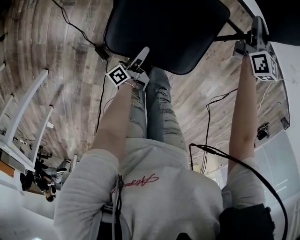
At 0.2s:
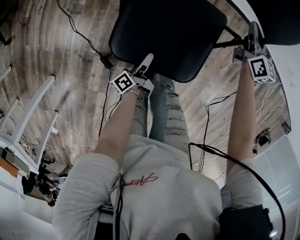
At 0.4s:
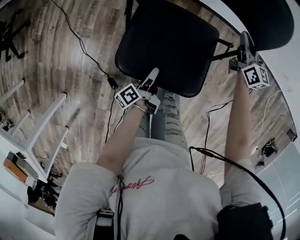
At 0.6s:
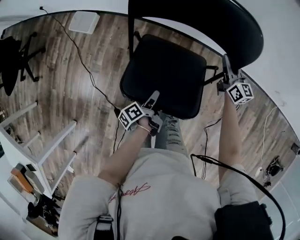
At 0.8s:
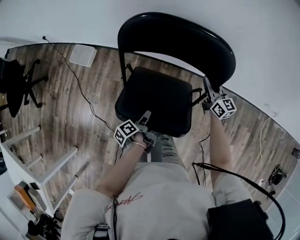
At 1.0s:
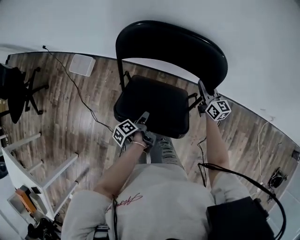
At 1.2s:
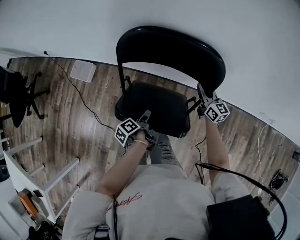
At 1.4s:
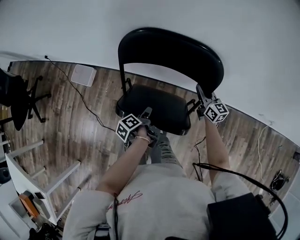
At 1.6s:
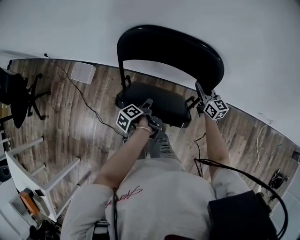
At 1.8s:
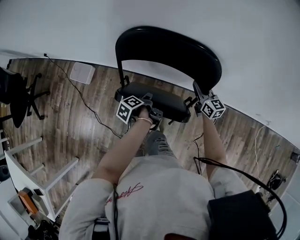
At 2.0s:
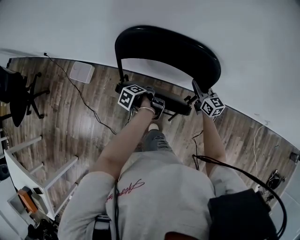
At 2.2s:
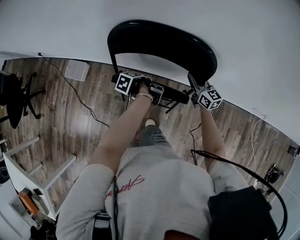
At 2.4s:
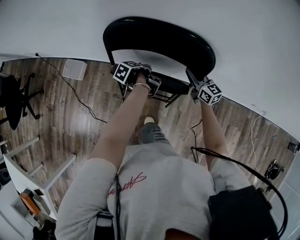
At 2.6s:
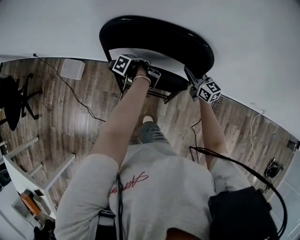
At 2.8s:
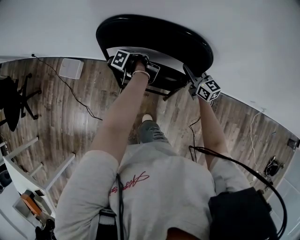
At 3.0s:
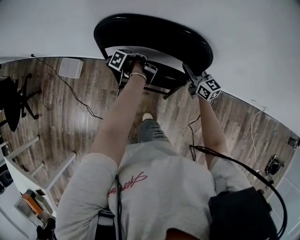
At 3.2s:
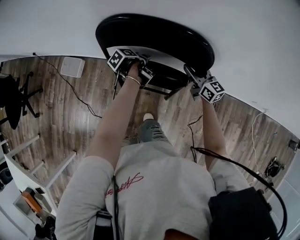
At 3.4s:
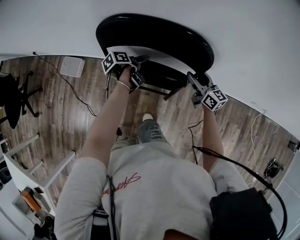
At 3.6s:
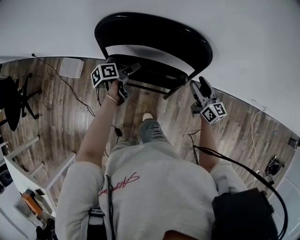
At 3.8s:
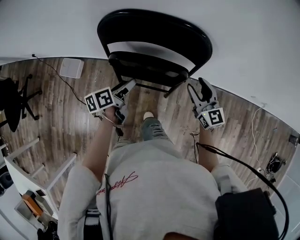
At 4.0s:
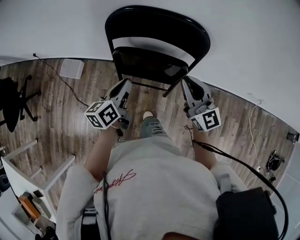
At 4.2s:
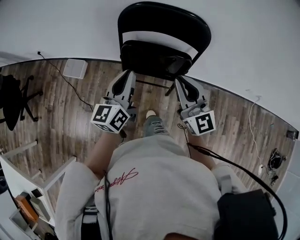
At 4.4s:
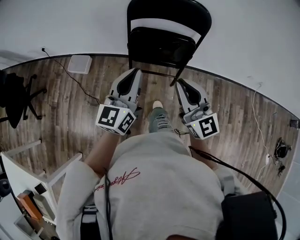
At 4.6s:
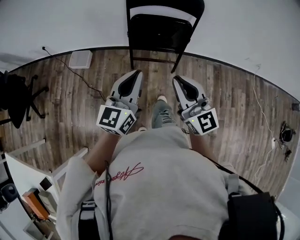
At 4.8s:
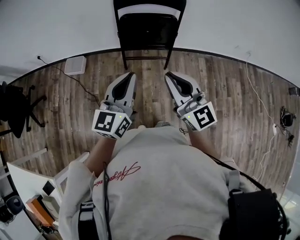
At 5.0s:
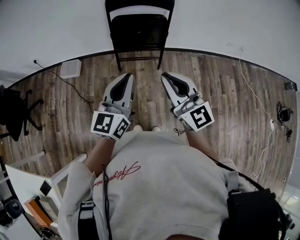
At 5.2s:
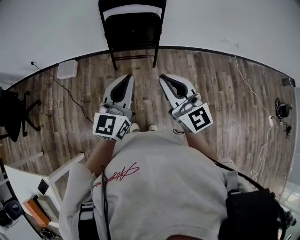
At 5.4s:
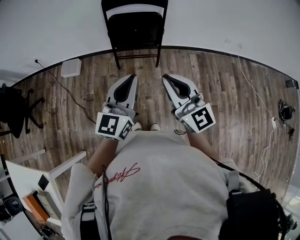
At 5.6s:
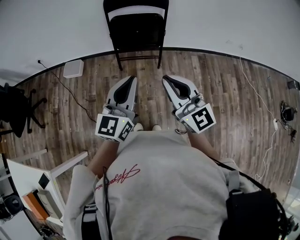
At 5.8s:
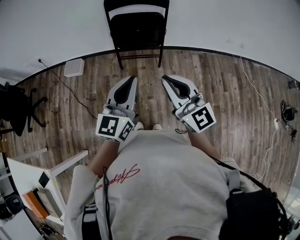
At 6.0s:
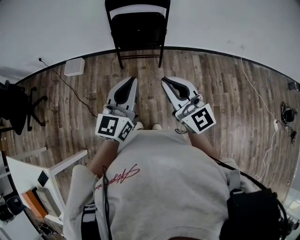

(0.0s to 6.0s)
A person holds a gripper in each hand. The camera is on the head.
0.0s - 1.6s: The left gripper goes approximately 40 cm forward and upward, points its fingers about 30 degrees further downward, and closes its fingers. Meanwhile the right gripper shifts approximately 20 cm forward and upward.
1.6s - 3.0s: The left gripper shifts roughly 15 cm forward.
3.0s - 4.4s: The left gripper travels upward and backward by about 40 cm, tips its fingers upward by some 60 degrees, and closes up. The right gripper moves backward, upward and to the left, some 50 cm, swivels approximately 30 degrees, and opens and closes again.
4.4s - 6.0s: Both grippers move backward, some 25 cm.

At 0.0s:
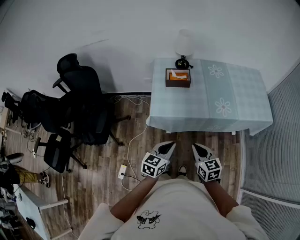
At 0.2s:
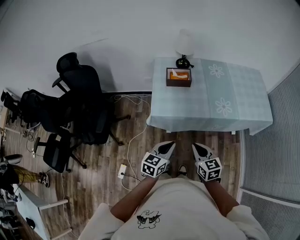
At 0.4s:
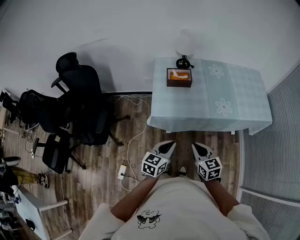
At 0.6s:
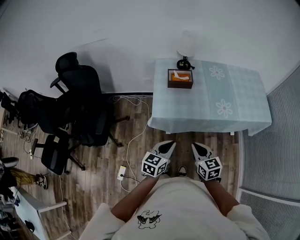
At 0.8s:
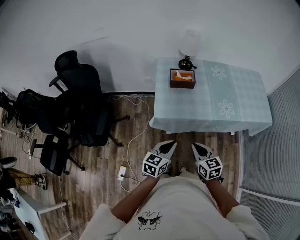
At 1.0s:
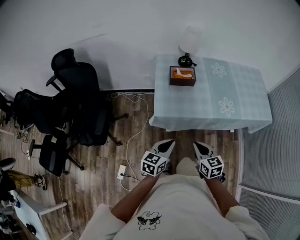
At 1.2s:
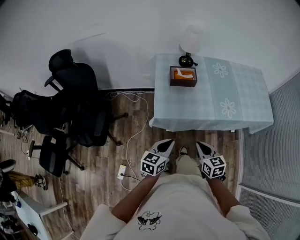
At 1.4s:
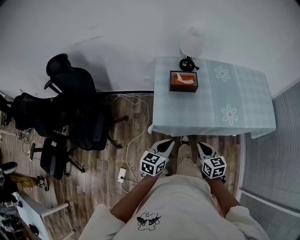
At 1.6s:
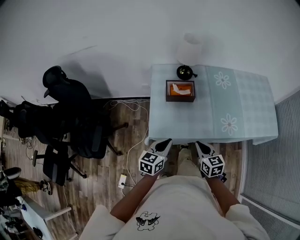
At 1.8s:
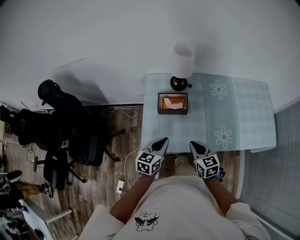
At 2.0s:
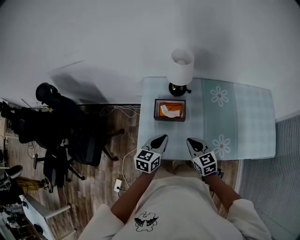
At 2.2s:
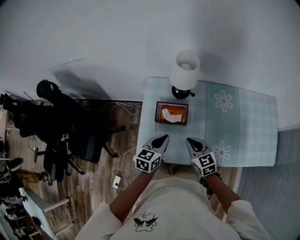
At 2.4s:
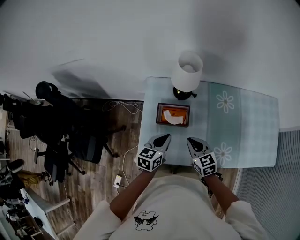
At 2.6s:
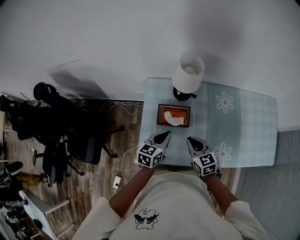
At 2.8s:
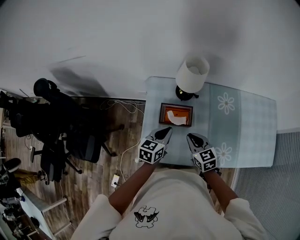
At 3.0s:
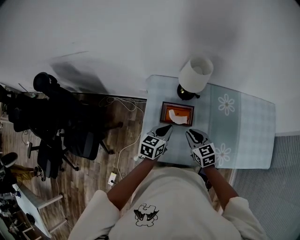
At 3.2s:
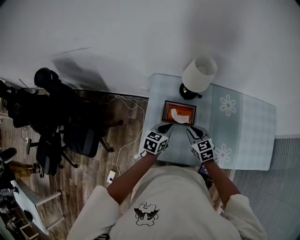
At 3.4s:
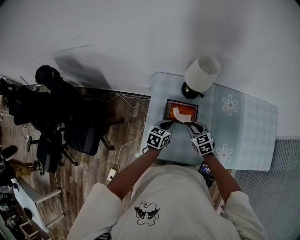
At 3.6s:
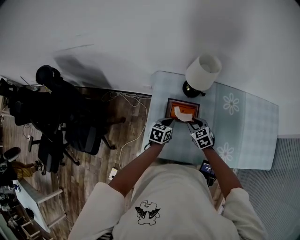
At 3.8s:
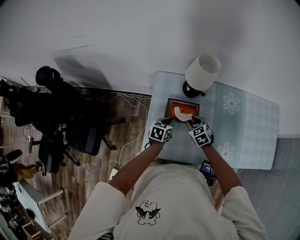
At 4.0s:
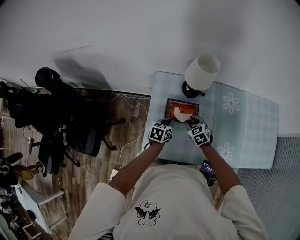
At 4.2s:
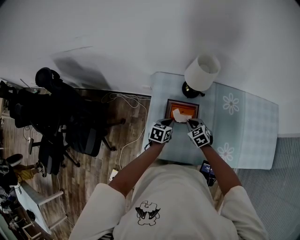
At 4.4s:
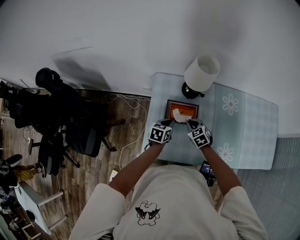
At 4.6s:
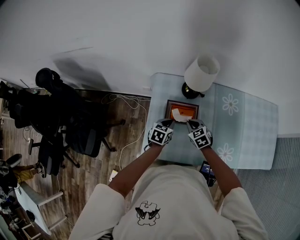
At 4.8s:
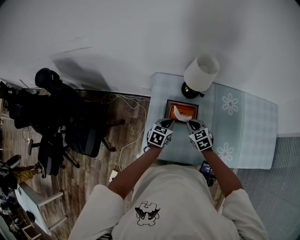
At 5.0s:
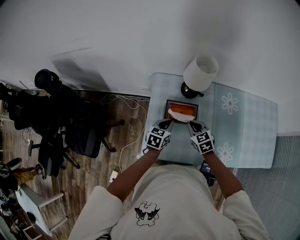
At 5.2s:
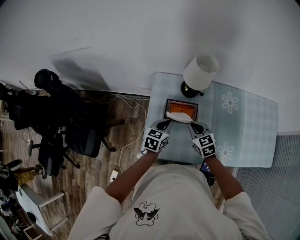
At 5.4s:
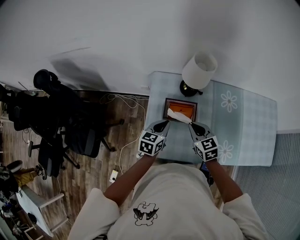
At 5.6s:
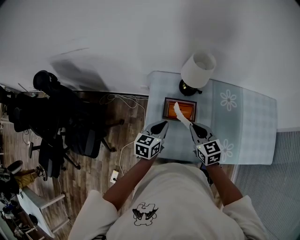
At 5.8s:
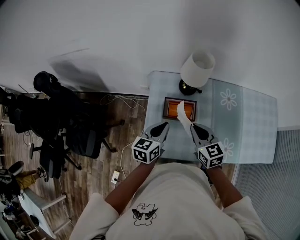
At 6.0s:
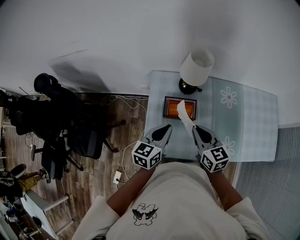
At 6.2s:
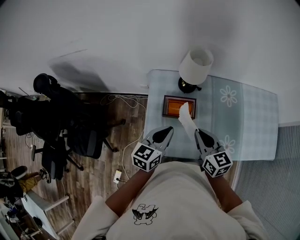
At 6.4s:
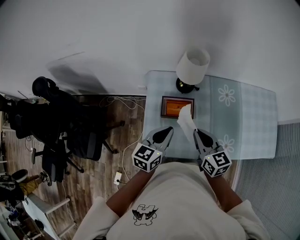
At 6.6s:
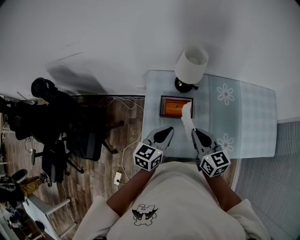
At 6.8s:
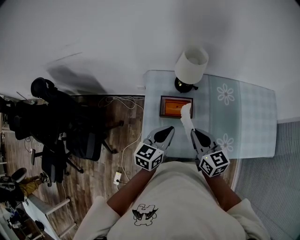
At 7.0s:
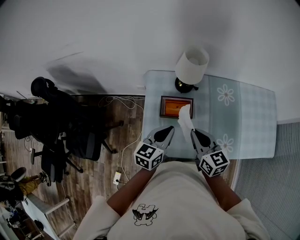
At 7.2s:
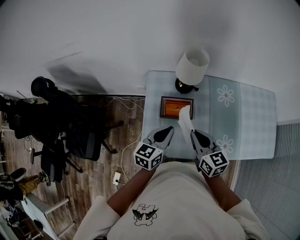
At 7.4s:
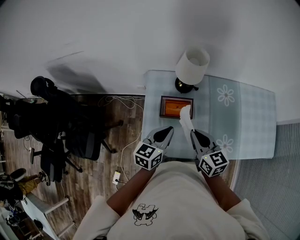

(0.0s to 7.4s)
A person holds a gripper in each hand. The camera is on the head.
0.0s - 1.4s: The left gripper heads forward and to the left, covering roughly 10 cm, while the right gripper moves forward and downward, roughly 10 cm.
1.4s - 3.0s: Both grippers travel together forward, approximately 35 cm.
3.0s - 4.4s: The left gripper heads downward, covering approximately 10 cm. Meanwhile the right gripper goes approximately 10 cm downward and forward, and swivels approximately 20 degrees.
4.4s - 6.0s: The two grippers go approximately 20 cm upward. The right gripper rotates about 40 degrees. The left gripper swivels about 20 degrees.
6.0s - 7.4s: The grippers make only small movements.

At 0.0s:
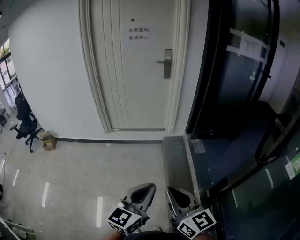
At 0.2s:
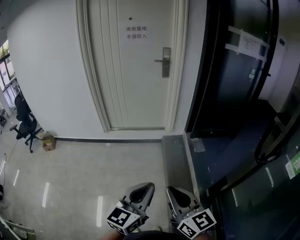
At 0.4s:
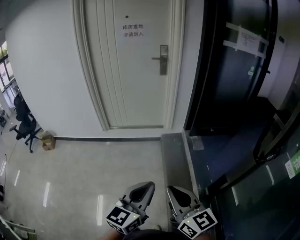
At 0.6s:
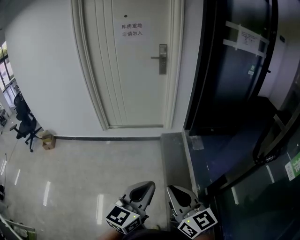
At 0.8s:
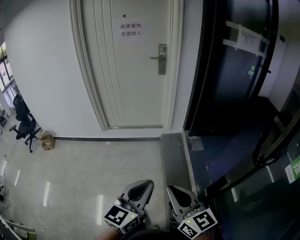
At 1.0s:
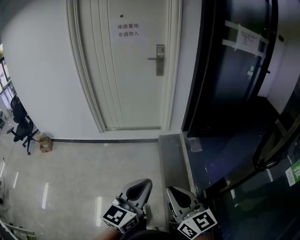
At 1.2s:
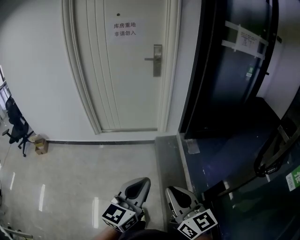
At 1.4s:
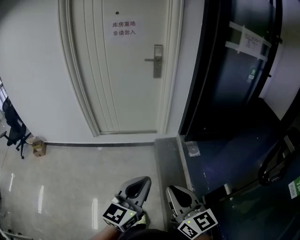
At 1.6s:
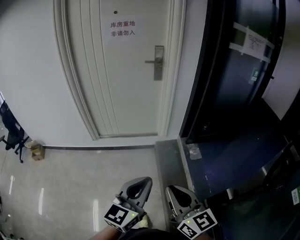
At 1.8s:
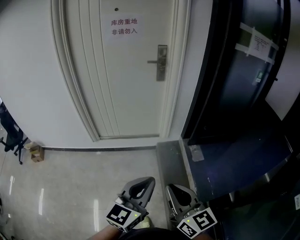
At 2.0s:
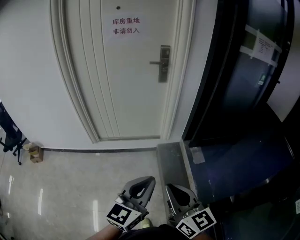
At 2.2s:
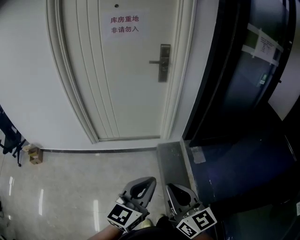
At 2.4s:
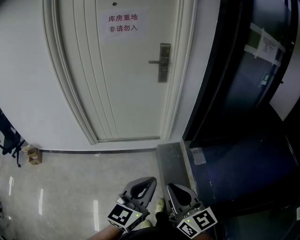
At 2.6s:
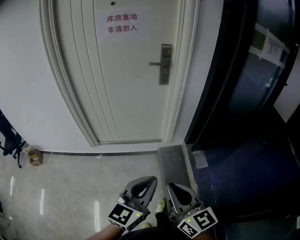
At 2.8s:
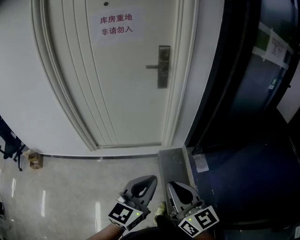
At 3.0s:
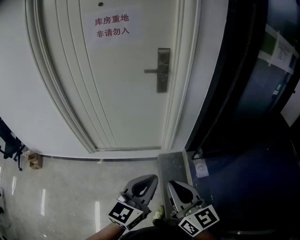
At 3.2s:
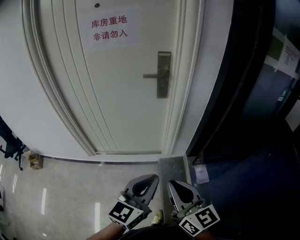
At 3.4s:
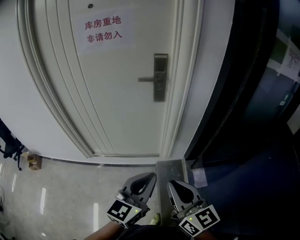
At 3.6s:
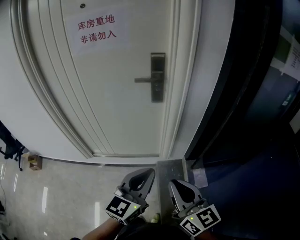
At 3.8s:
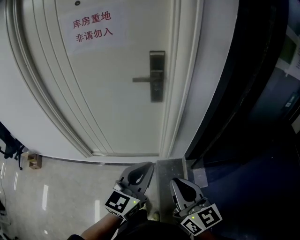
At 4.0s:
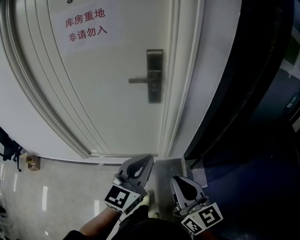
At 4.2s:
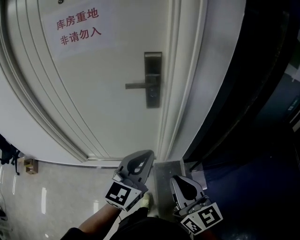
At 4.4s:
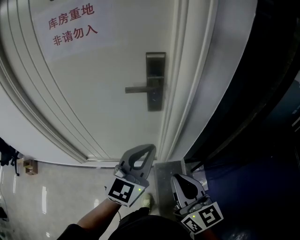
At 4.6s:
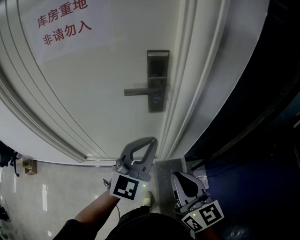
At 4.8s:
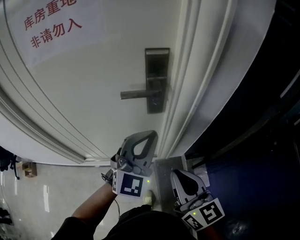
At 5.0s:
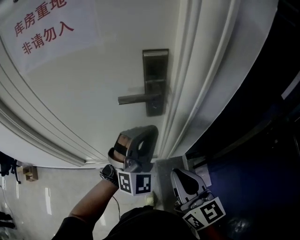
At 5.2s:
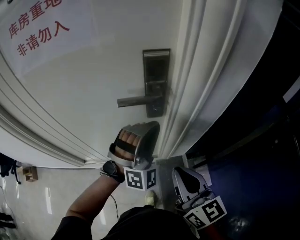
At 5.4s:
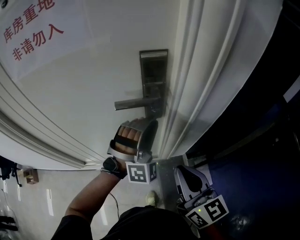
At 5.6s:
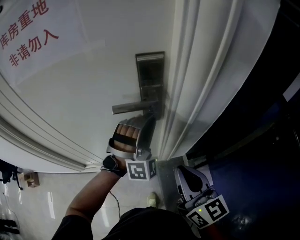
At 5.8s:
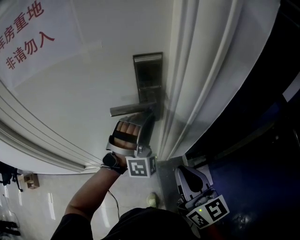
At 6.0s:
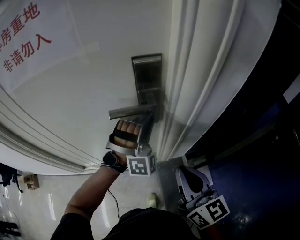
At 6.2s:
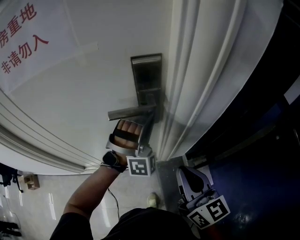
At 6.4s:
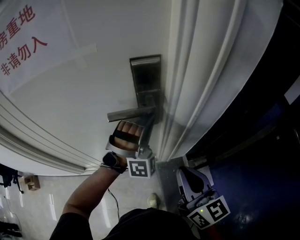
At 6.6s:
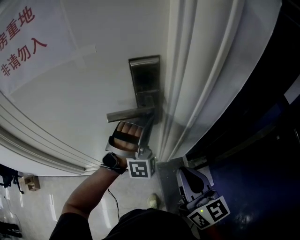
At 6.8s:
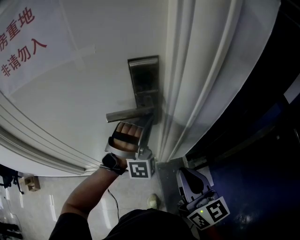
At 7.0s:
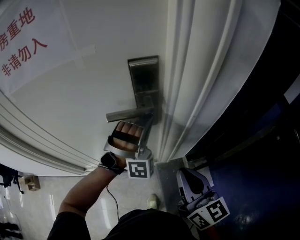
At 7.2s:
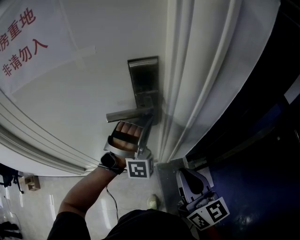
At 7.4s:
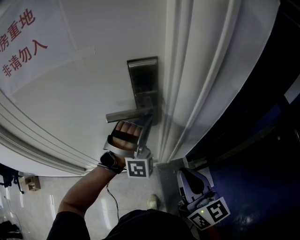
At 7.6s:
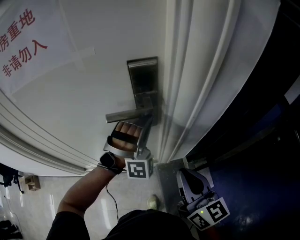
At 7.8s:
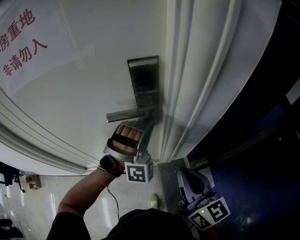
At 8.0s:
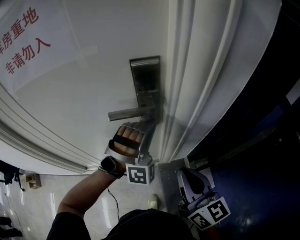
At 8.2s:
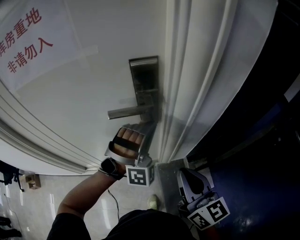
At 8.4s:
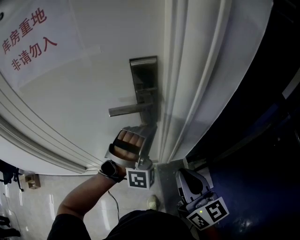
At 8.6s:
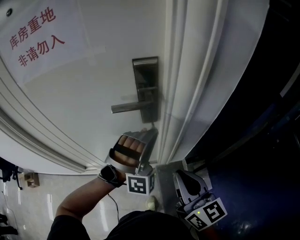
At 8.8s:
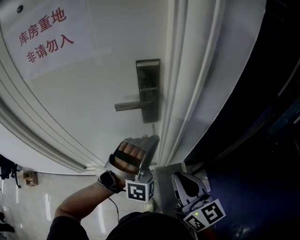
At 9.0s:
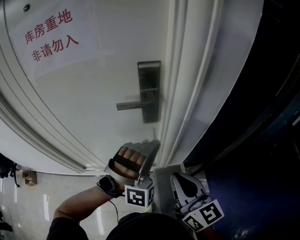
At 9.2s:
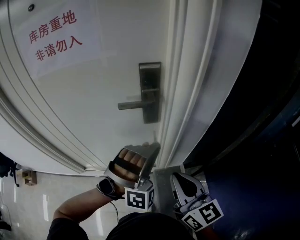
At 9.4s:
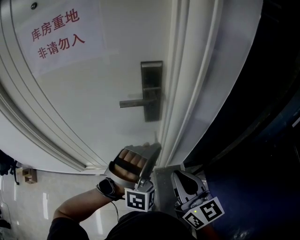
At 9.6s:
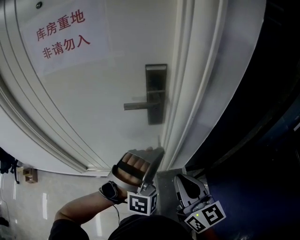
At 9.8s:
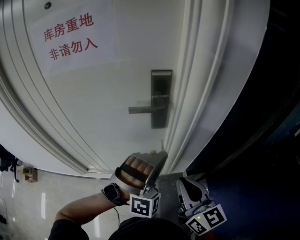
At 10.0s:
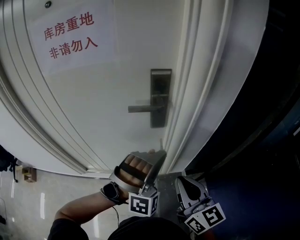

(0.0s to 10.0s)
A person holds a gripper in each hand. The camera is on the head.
0.0s - 1.4s: The grippers both shift forward by about 15 cm.
1.4s - 2.8s: Both grippers travel together forward, about 30 cm.
2.8s - 4.2s: The two grippers go approximately 30 cm forward.
4.2s - 5.8s: The left gripper heads forward, covering about 30 cm, and twists some 80 degrees clockwise, seen from behind; the right gripper heads forward, covering about 20 cm.
5.8s - 7.2s: The grippers move only a little.
7.2s - 8.6s: The left gripper travels backward by some 10 cm.
8.6s - 10.0s: The left gripper heads backward, covering some 10 cm.
